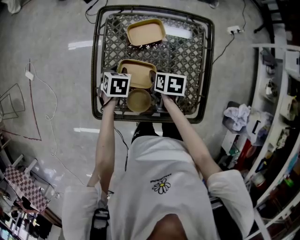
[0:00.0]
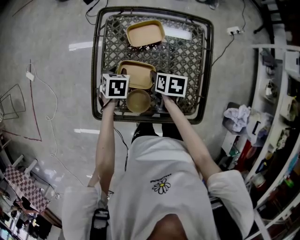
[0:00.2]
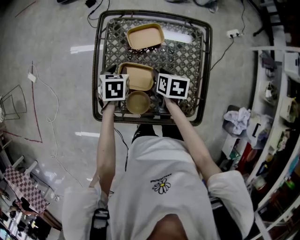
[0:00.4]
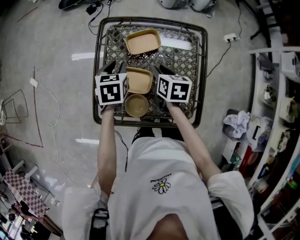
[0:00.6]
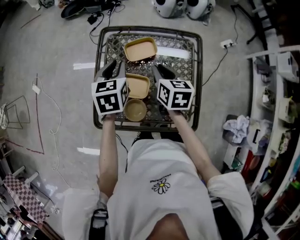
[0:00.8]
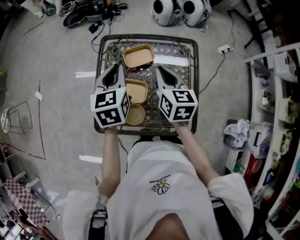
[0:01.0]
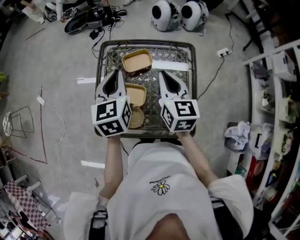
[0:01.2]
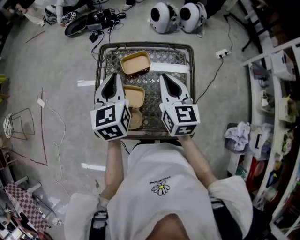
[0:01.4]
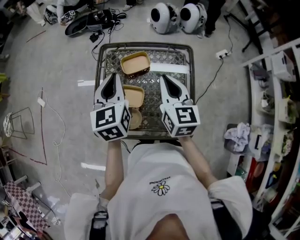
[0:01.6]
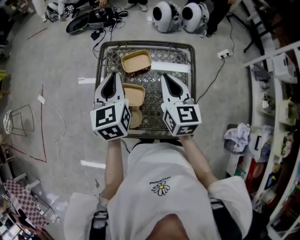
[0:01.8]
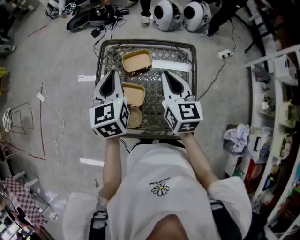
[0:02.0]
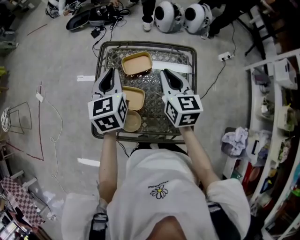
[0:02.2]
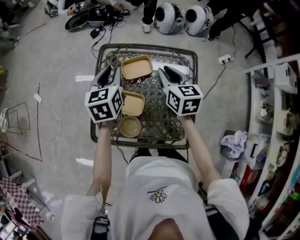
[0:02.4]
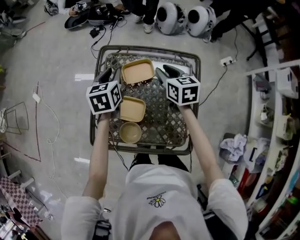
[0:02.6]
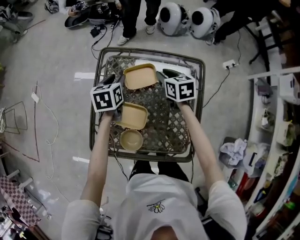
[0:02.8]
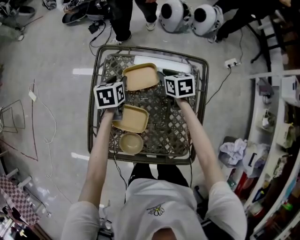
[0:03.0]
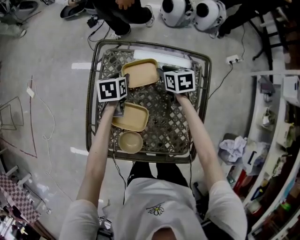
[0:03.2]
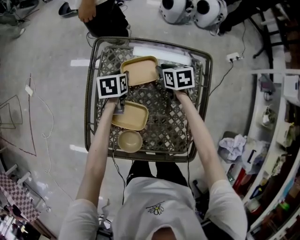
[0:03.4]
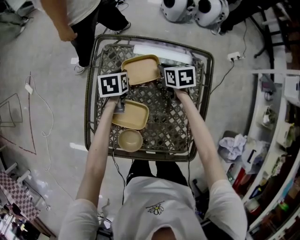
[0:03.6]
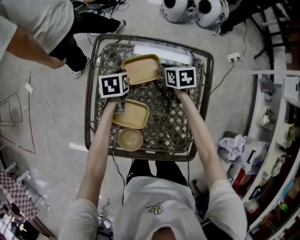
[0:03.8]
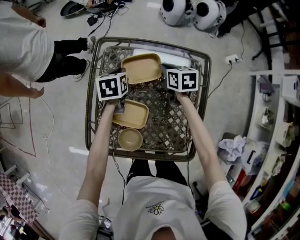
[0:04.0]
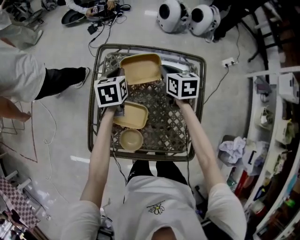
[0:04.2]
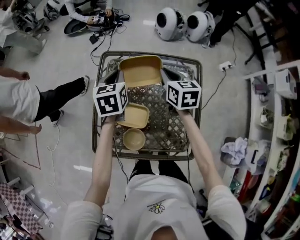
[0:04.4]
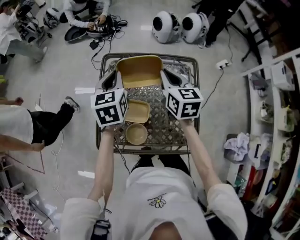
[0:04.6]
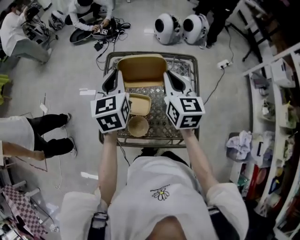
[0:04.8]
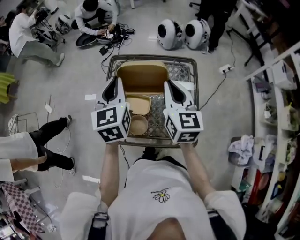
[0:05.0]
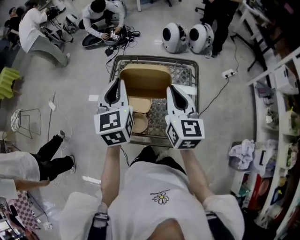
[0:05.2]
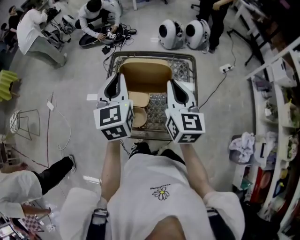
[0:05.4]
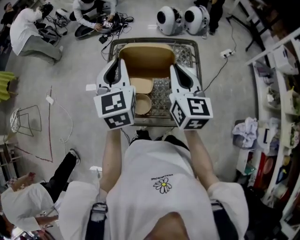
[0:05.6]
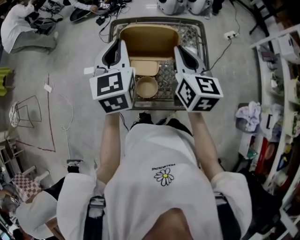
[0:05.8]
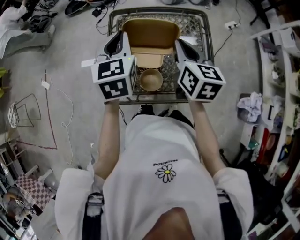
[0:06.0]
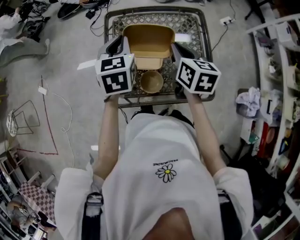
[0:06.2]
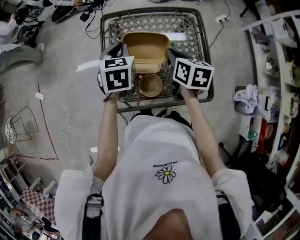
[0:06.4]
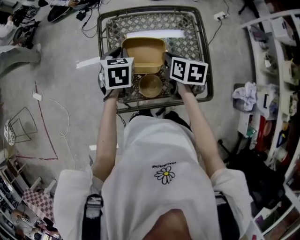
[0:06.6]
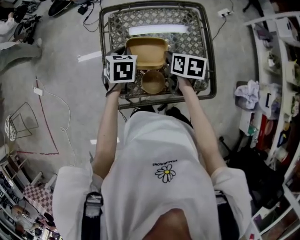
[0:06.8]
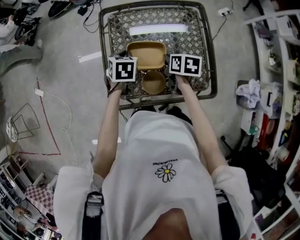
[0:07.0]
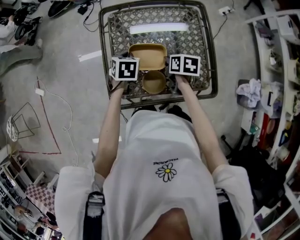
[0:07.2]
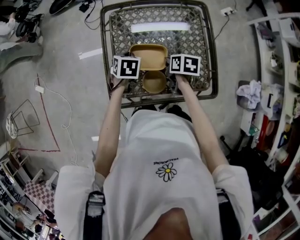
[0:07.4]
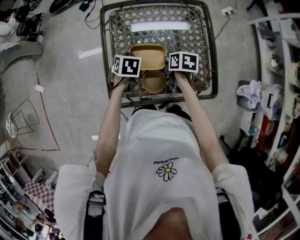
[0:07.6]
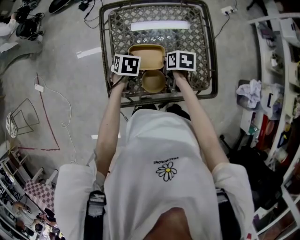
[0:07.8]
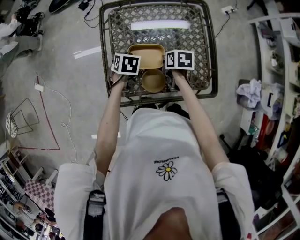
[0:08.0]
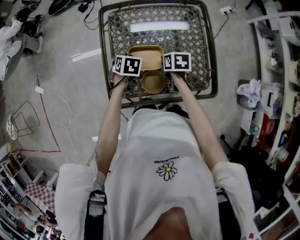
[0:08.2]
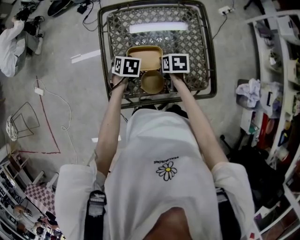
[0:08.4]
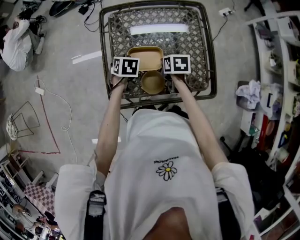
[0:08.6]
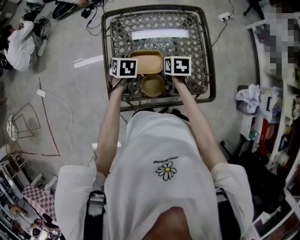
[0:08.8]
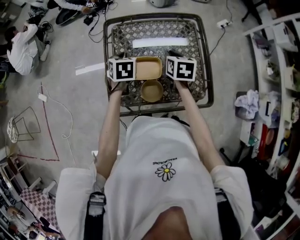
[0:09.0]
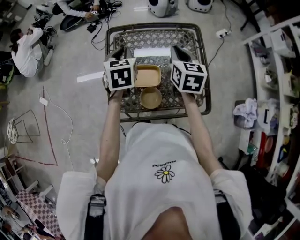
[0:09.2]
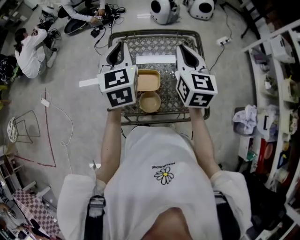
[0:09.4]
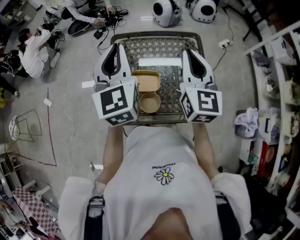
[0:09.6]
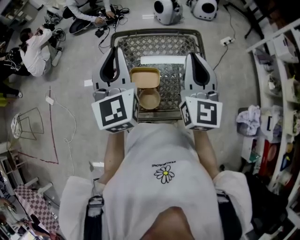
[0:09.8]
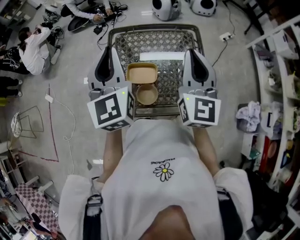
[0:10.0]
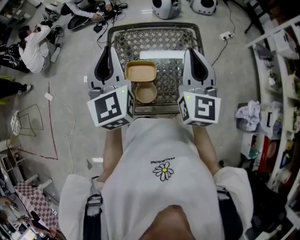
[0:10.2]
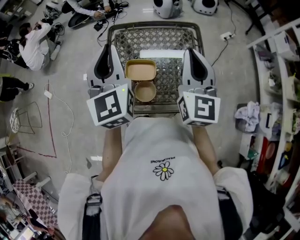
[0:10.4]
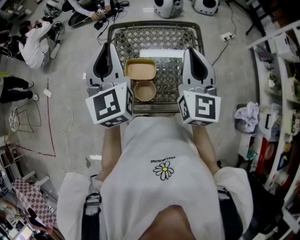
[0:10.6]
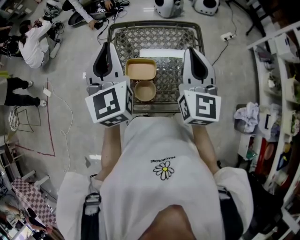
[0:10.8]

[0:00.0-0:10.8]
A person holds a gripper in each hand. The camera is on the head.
0:00.0 to 0:01.6: Both grippers travel together upward, roughly 30 cm. The right gripper tips its fingers upward by roughly 40 degrees, and closes. Meanwhile the left gripper points its fingers approximately 50 degrees further upward, and closes its fingers.
0:01.6 to 0:03.0: The grippers both shift downward and forward by about 35 cm. The left gripper tilts its fingers approximately 30 degrees downward, and opens its fingers. Meanwhile the right gripper points its fingers some 30 degrees further downward, and opens its fingers.
0:03.0 to 0:04.6: The right gripper heads upward and backward, covering some 25 cm, and rotates about 30 degrees; the left gripper goes roughly 20 cm upward, swivels some 30 degrees, and closes.
0:04.6 to 0:06.2: The left gripper shifts approximately 10 cm backward. The right gripper heads backward, covering approximately 15 cm.
0:06.2 to 0:07.8: Both grippers move downward, approximately 25 cm. The left gripper tips its fingers downward by approximately 30 degrees; the right gripper rotates some 40 degrees.
0:07.8 to 0:09.2: Both grippers move upward, approximately 20 cm. The right gripper tips its fingers upward by about 30 degrees. Meanwhile the left gripper swivels approximately 30 degrees.
0:09.2 to 0:10.8: Both grippers travel together upward and backward, some 20 cm. The left gripper tilts its fingers about 40 degrees upward; the right gripper changes its angle by about 30 degrees.

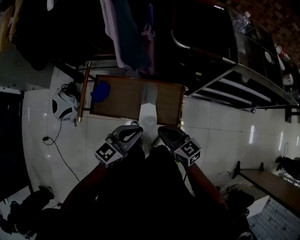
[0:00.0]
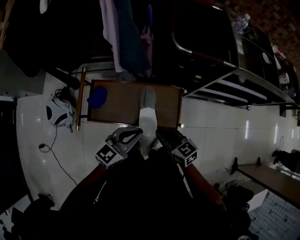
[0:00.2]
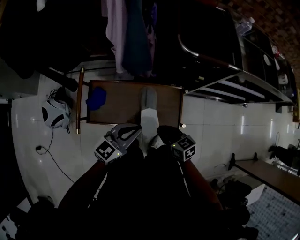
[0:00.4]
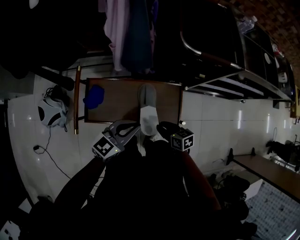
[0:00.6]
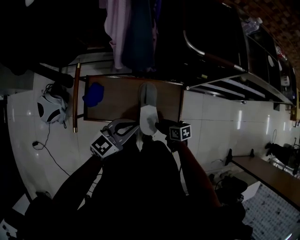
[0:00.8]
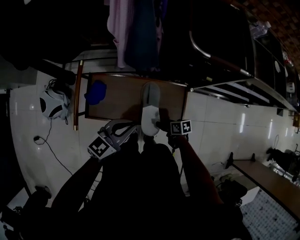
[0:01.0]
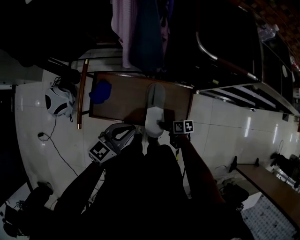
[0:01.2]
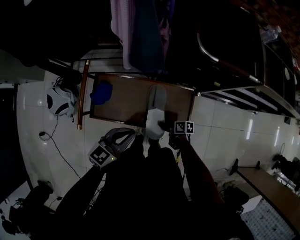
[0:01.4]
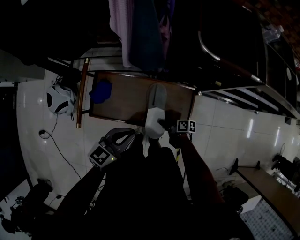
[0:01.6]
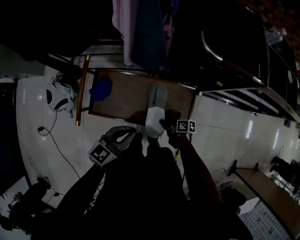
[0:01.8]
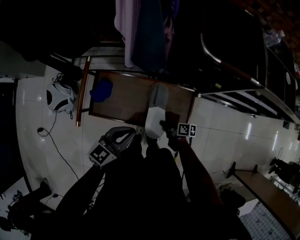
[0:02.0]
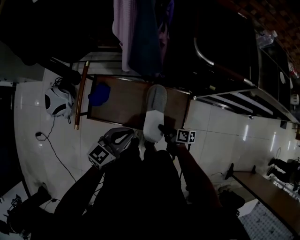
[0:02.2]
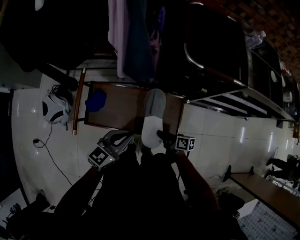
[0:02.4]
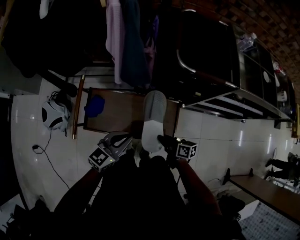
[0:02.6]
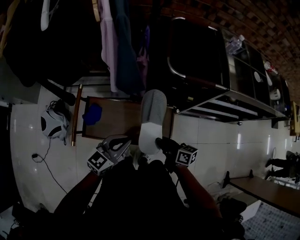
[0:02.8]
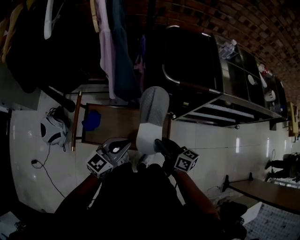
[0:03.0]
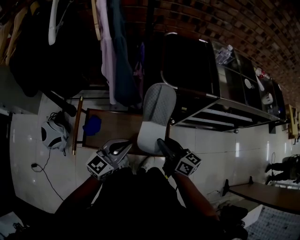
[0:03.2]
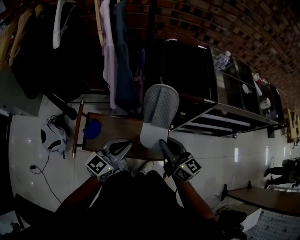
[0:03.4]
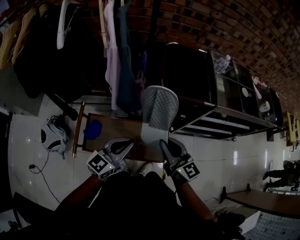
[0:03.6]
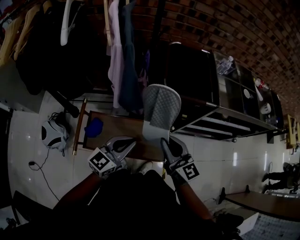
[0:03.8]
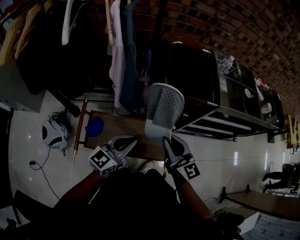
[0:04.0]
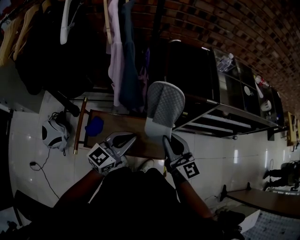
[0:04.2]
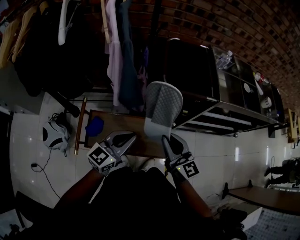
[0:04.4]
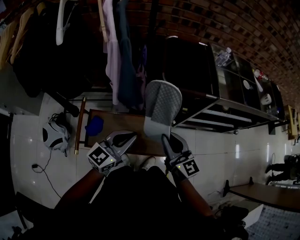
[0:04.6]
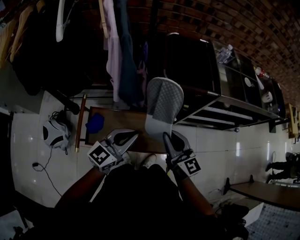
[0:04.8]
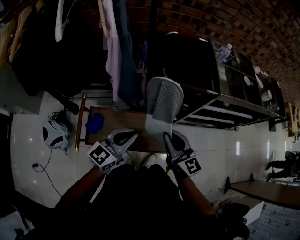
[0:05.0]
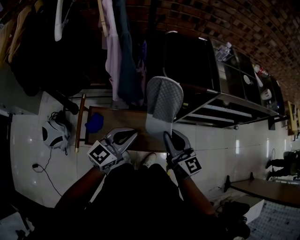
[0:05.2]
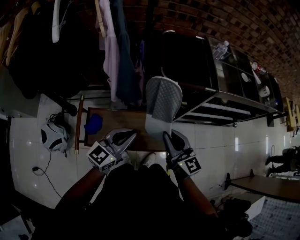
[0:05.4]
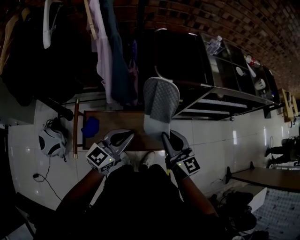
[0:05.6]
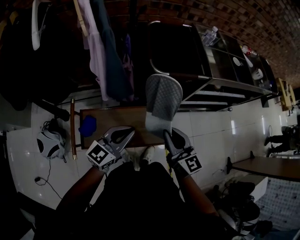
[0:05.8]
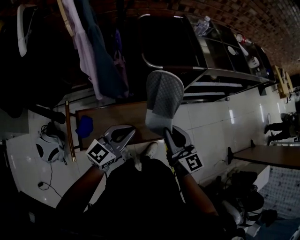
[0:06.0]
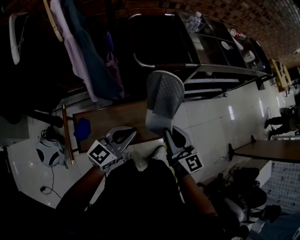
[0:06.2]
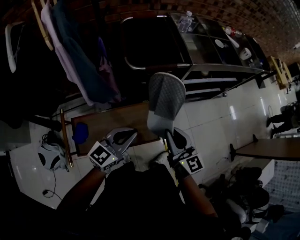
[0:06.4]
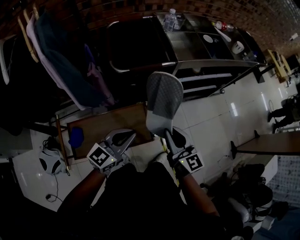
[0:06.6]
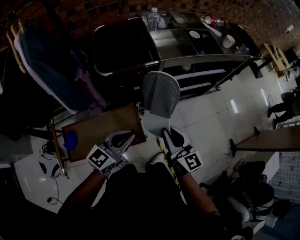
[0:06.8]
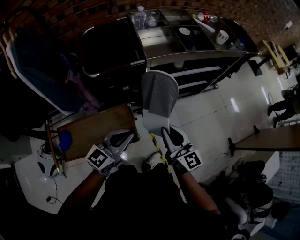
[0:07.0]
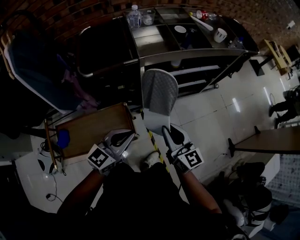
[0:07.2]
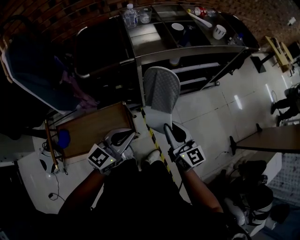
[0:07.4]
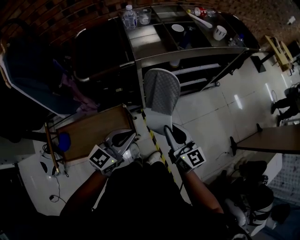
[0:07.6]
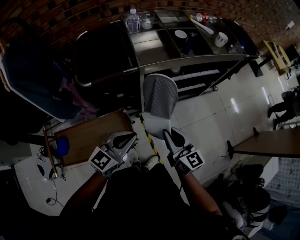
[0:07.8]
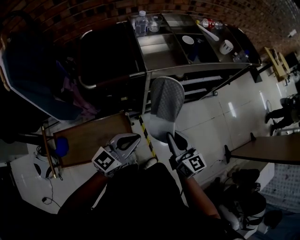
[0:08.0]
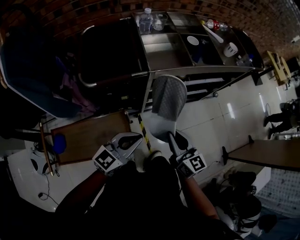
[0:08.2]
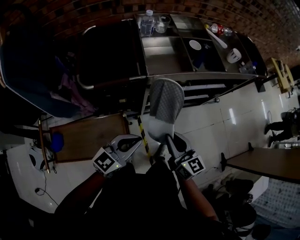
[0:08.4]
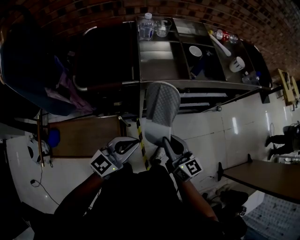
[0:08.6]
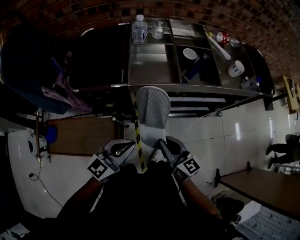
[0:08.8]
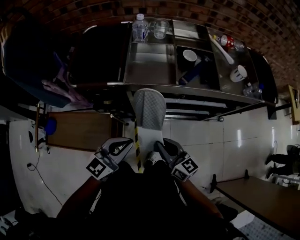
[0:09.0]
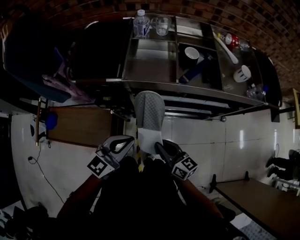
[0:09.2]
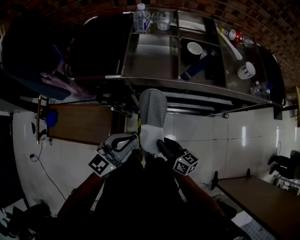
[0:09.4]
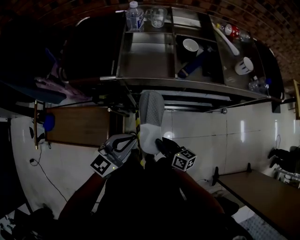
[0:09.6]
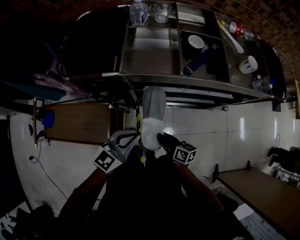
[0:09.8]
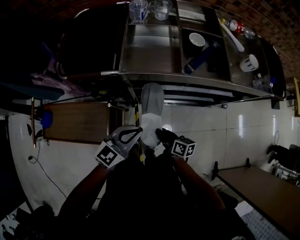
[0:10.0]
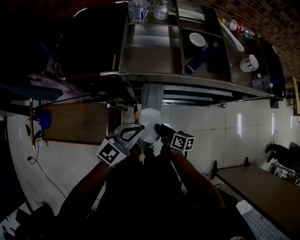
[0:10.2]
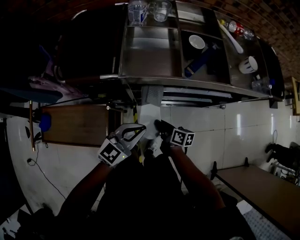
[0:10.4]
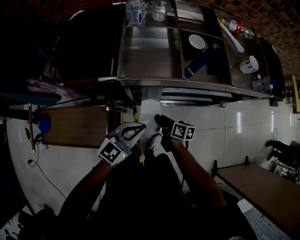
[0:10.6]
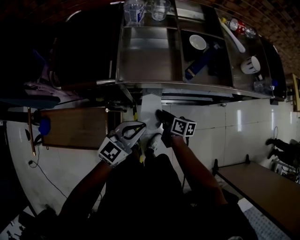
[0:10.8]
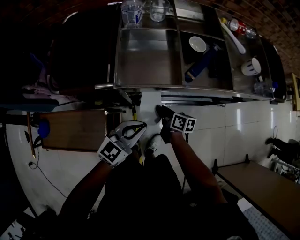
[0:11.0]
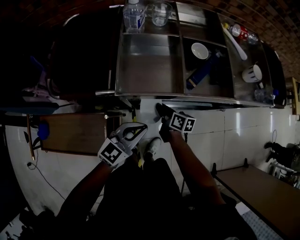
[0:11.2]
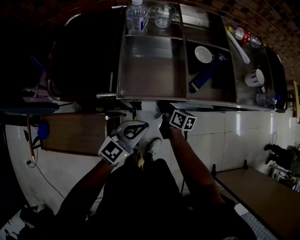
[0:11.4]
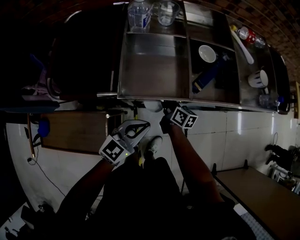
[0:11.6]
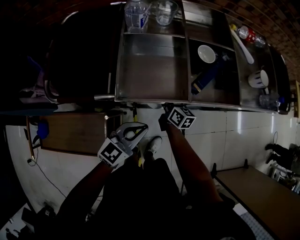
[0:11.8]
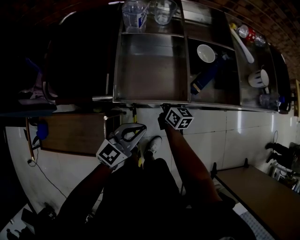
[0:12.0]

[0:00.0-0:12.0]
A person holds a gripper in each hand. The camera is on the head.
0:00.0 to 0:01.6: The right gripper shifts roughly 30 cm downward, twists roughly 60 degrees clockwise, seen from behind, and opens; the left gripper shifts by some 15 cm.
0:01.6 to 0:03.0: The left gripper shifts some 10 cm upward and to the right, while the right gripper heads upward, covering about 30 cm, turns by approximately 50 degrees, and closes its fingers.
0:03.0 to 0:04.4: The right gripper heads upward, covering approximately 15 cm, and changes its angle by some 40 degrees. Meanwhile the left gripper heads upward, covering roughly 5 cm.
0:04.4 to 0:06.0: The right gripper shifts by approximately 5 cm.
0:06.0 to 0:07.6: The two grippers go some 30 cm to the right.
0:07.6 to 0:09.0: The right gripper goes approximately 15 cm forward, to the right and downward, and changes its angle by about 30 degrees. The left gripper goes roughly 15 cm forward and to the right.
0:09.0 to 0:10.4: The right gripper shifts approximately 20 cm downward, and changes its angle by roughly 40 degrees. Meanwhile the left gripper shifts about 10 cm downward and forward.
0:10.4 to 0:12.0: The right gripper shifts approximately 20 cm forward, and swivels some 30 degrees. Meanwhile the left gripper heads forward, covering approximately 10 cm.
